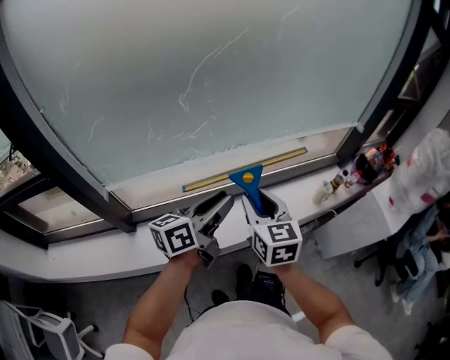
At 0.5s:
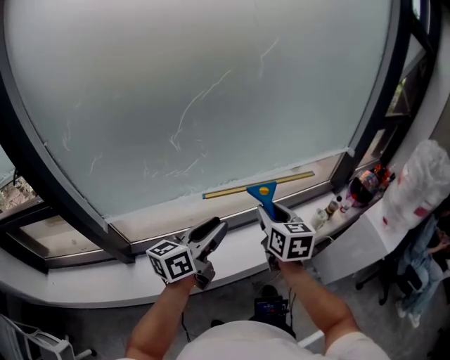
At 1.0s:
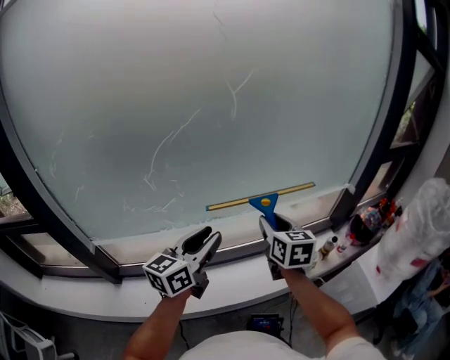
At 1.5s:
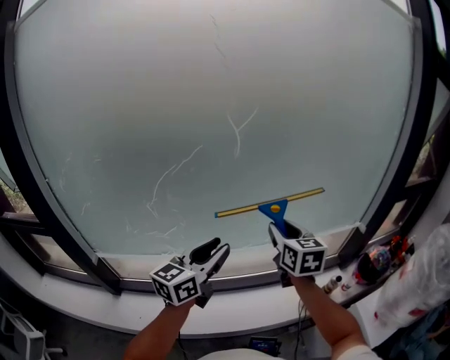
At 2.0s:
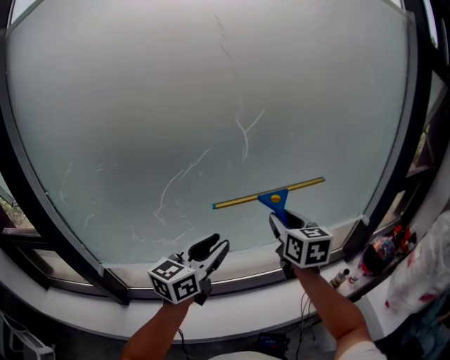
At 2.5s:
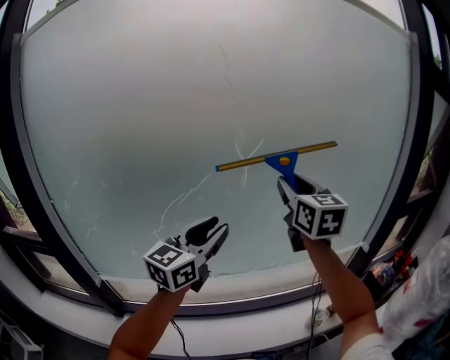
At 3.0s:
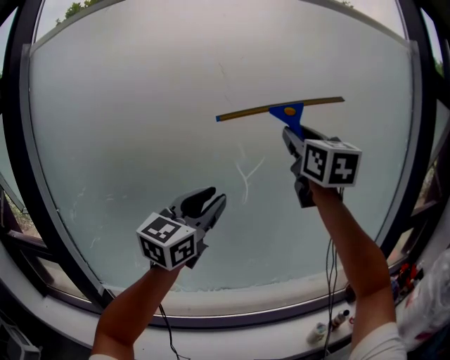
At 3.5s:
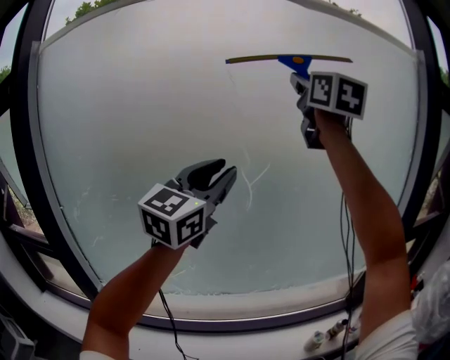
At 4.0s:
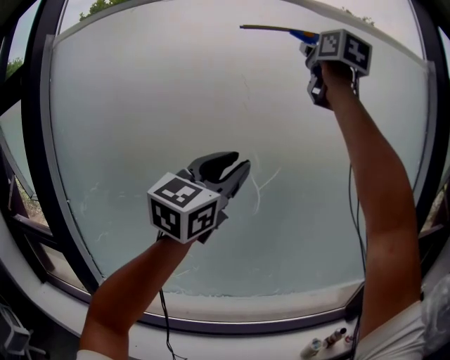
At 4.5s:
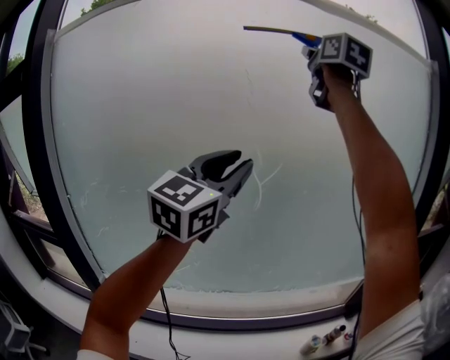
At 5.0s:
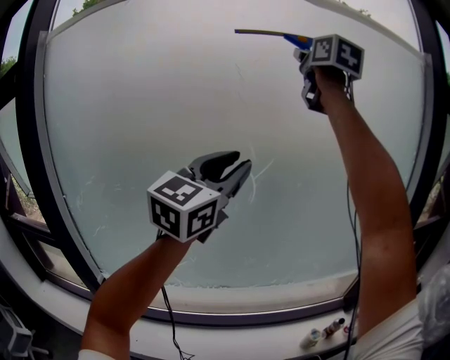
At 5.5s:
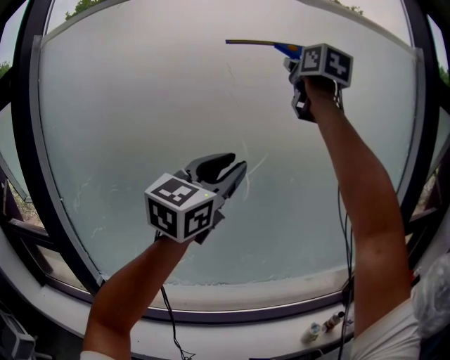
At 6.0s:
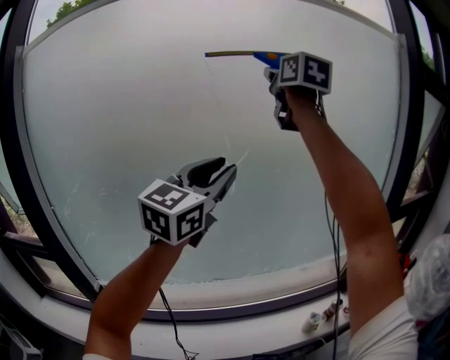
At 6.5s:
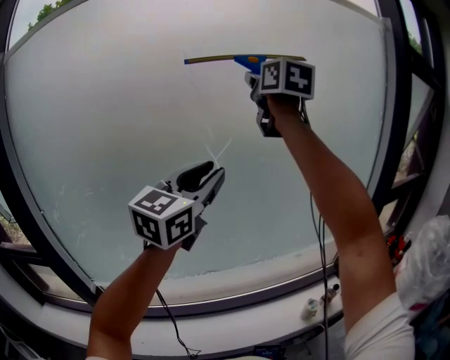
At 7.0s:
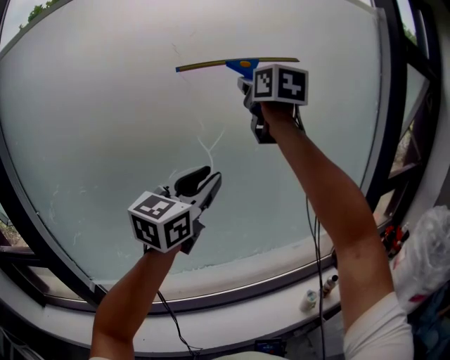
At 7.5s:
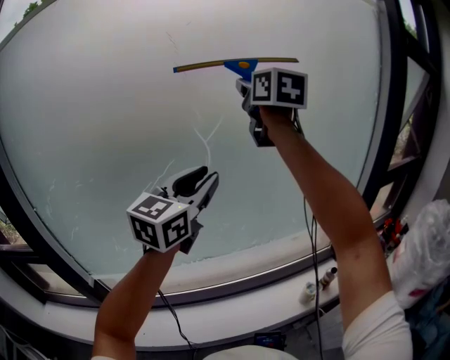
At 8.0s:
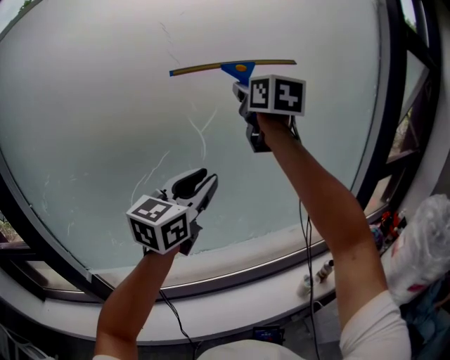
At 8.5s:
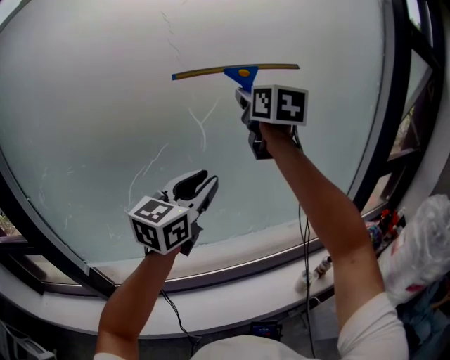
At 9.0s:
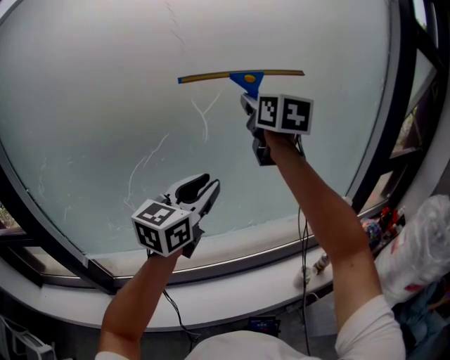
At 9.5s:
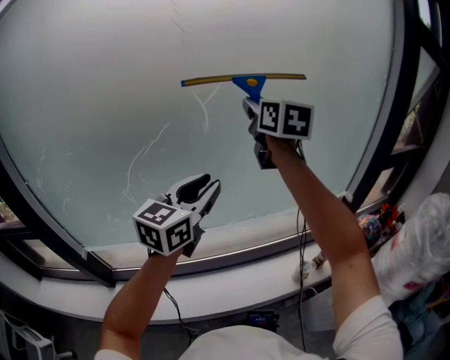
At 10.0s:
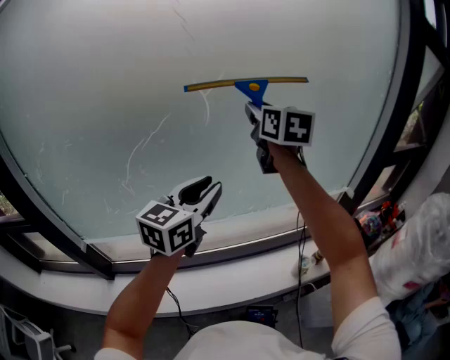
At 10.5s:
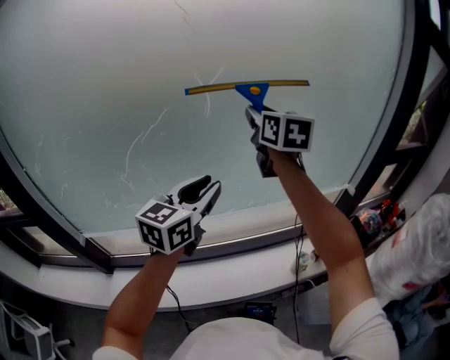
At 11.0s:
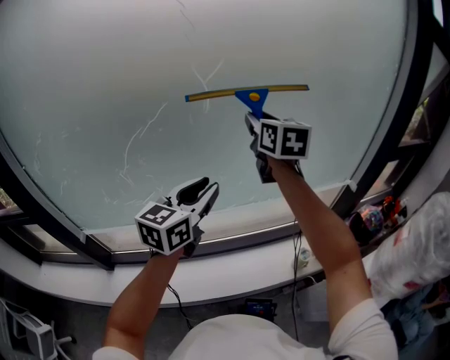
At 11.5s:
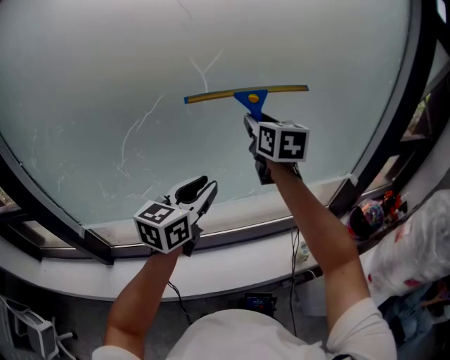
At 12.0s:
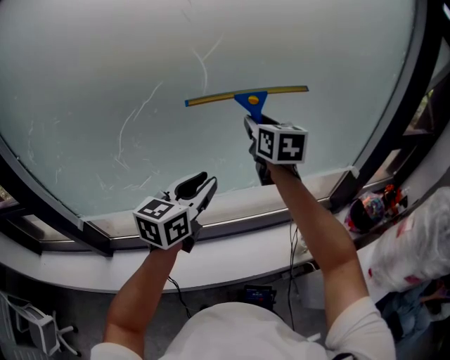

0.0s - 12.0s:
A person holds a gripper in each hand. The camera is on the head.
0.0s - 2.0s: The grippers both shift forward, upward and to the right by some 30 cm. The left gripper turns by roughly 30 degrees.
2.0s - 4.0s: The left gripper is displaced upward by roughly 30 cm, and turns by approximately 40 degrees, while the right gripper heads upward, covering approximately 60 cm, and tips its fingers upward by about 30 degrees.
4.0s - 6.0s: The right gripper travels downward by some 15 cm; the left gripper travels downward by approximately 5 cm.
6.0s - 8.0s: The two grippers go approximately 15 cm downward.
8.0s - 10.0s: The grippers both shift downward by approximately 15 cm.
10.0s - 12.0s: The left gripper is displaced downward by about 10 cm, while the right gripper shifts approximately 15 cm downward.

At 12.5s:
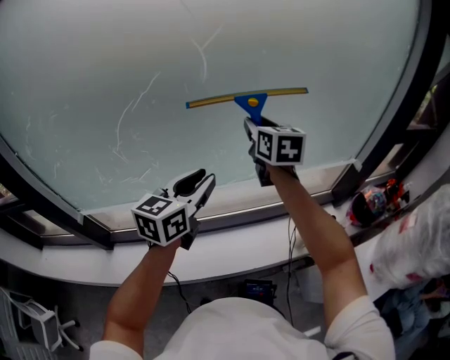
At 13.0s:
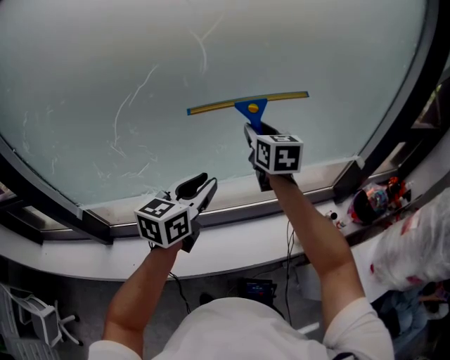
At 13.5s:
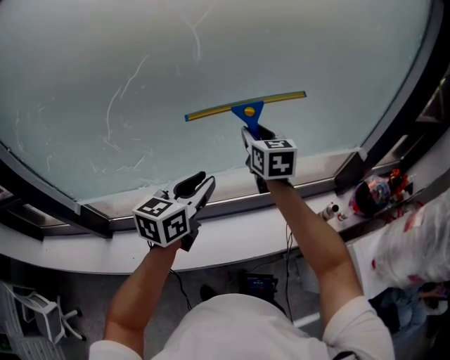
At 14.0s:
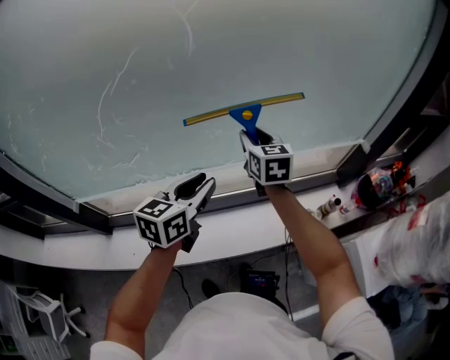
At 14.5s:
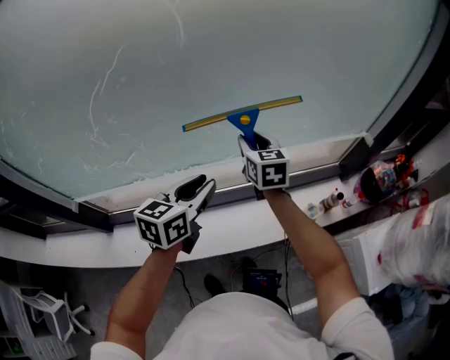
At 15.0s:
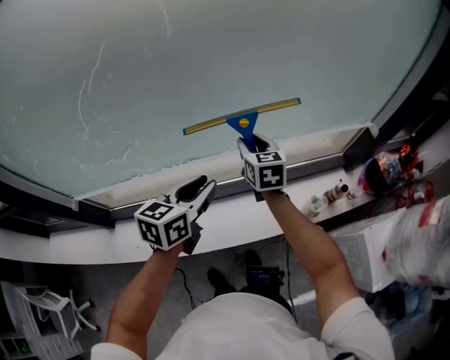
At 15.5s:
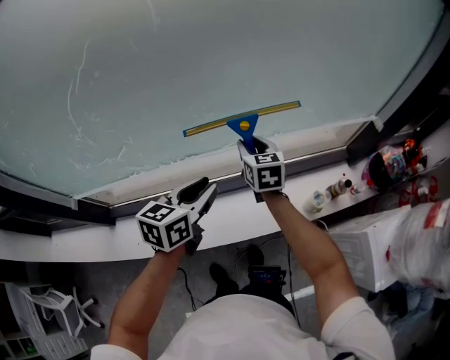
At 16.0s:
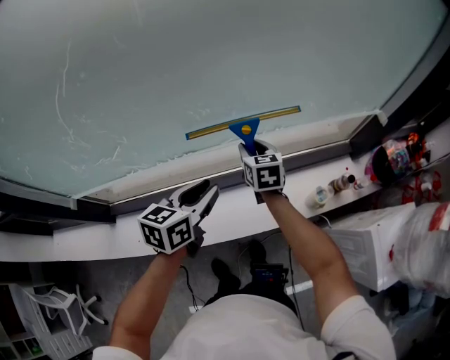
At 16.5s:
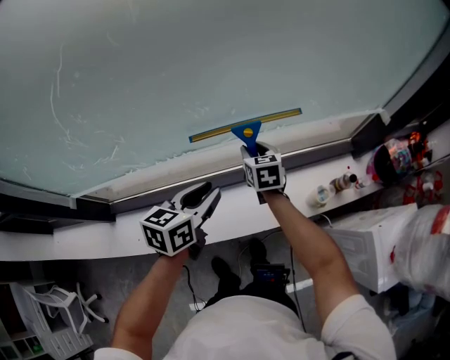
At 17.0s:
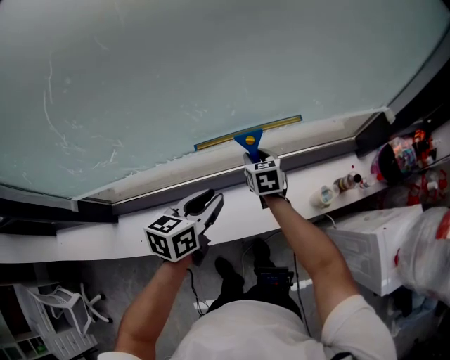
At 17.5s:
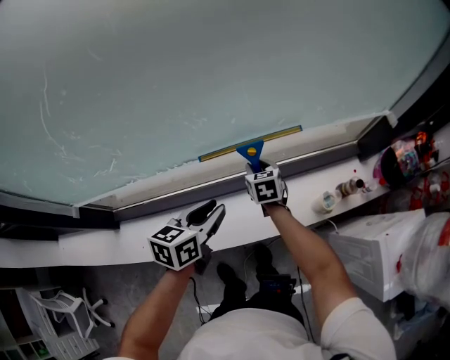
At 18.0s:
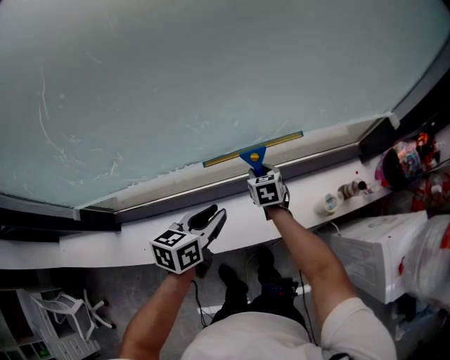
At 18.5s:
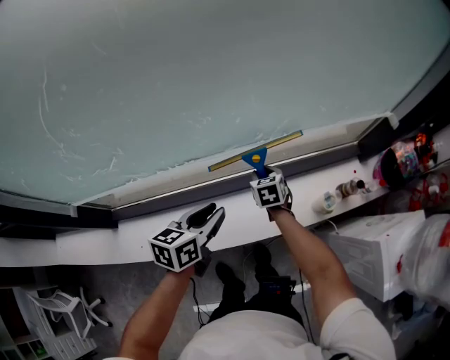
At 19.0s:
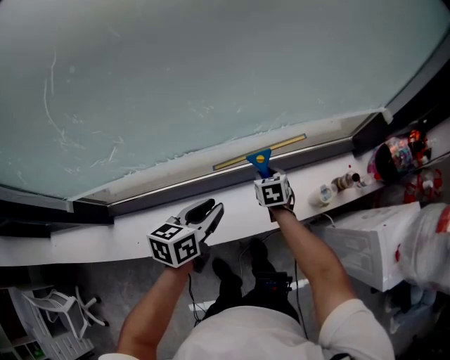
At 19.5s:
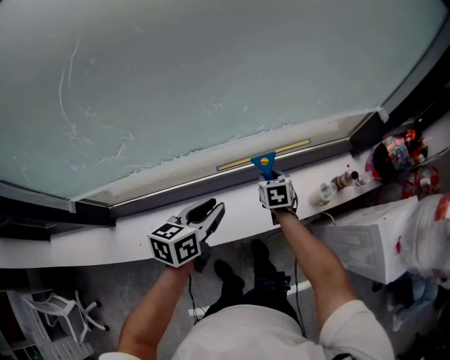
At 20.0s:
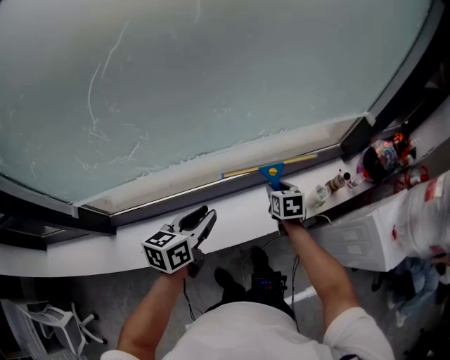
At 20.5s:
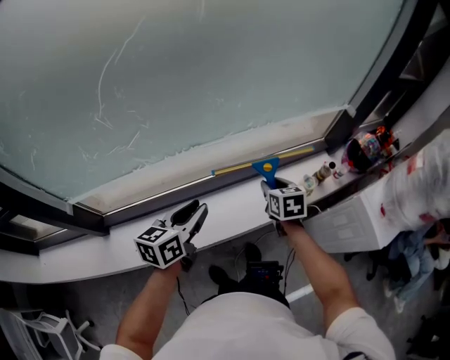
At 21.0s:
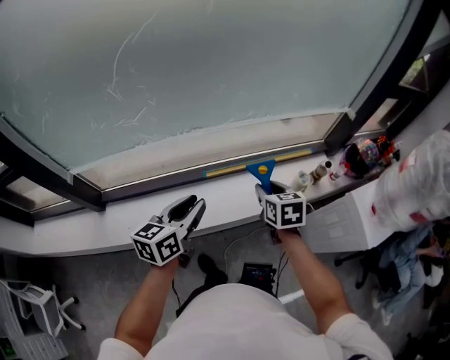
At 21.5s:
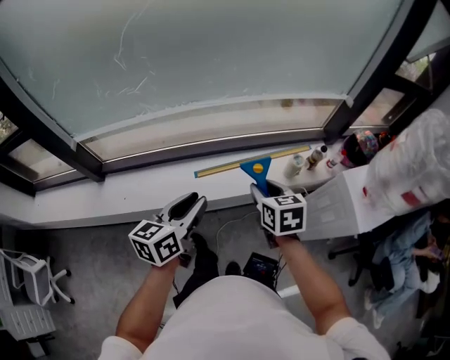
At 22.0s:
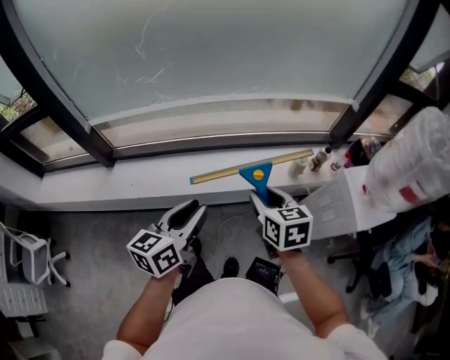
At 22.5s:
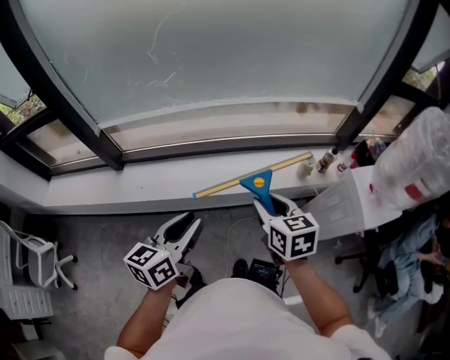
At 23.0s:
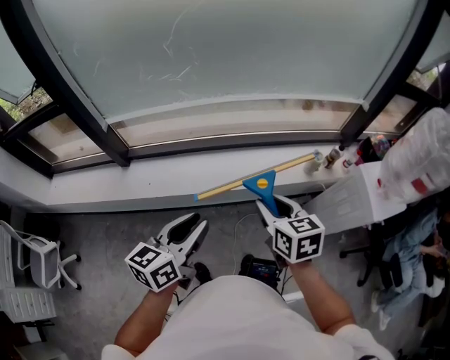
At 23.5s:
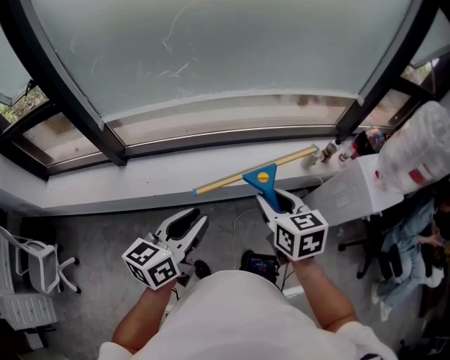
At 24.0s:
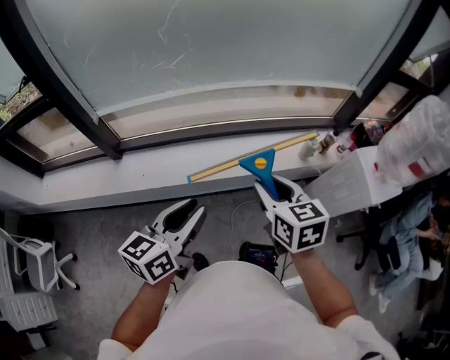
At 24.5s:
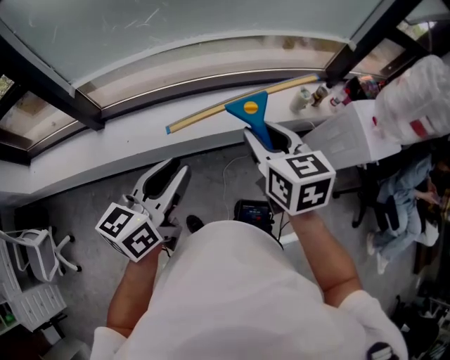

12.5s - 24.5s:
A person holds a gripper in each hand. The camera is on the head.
12.5s - 14.5s: The right gripper heads downward, covering roughly 15 cm. Meanwhile the left gripper goes approximately 10 cm downward.
14.5s - 16.5s: The left gripper travels downward by about 10 cm. Meanwhile the right gripper heads downward, covering roughly 20 cm.
16.5s - 18.5s: The left gripper travels downward by some 5 cm. The right gripper moves downward, roughly 10 cm.
18.5s - 20.5s: The left gripper moves backward, upward and to the left, about 15 cm. The right gripper goes approximately 25 cm backward and upward.
20.5s - 22.5s: The grippers both shift backward by about 30 cm. The right gripper rotates about 20 degrees.
22.5s - 24.5s: The right gripper shifts approximately 10 cm to the left and upward. Meanwhile the left gripper goes some 5 cm to the left.

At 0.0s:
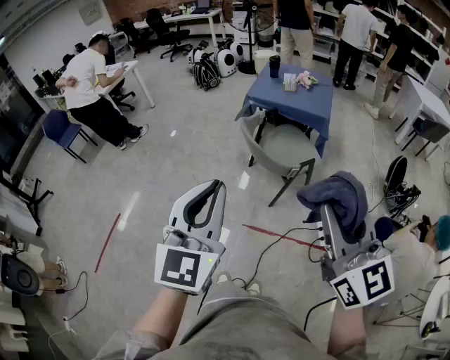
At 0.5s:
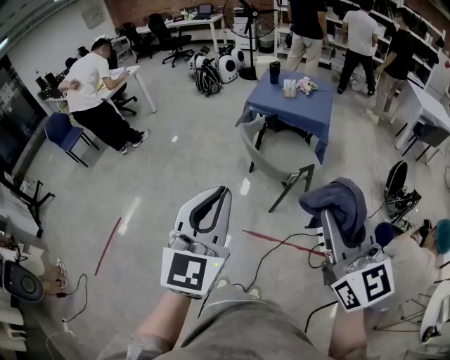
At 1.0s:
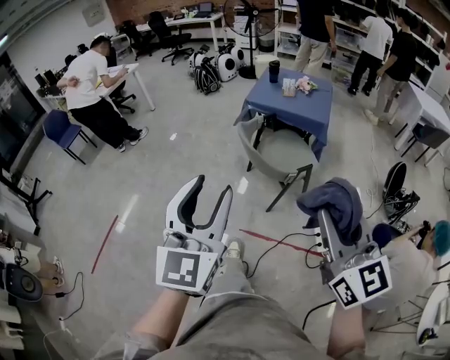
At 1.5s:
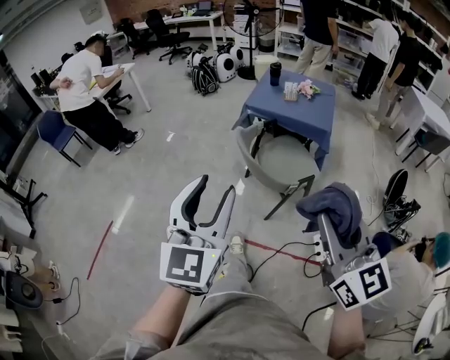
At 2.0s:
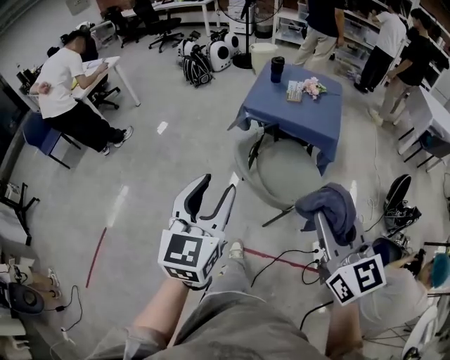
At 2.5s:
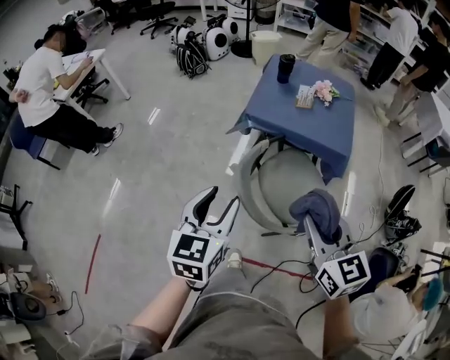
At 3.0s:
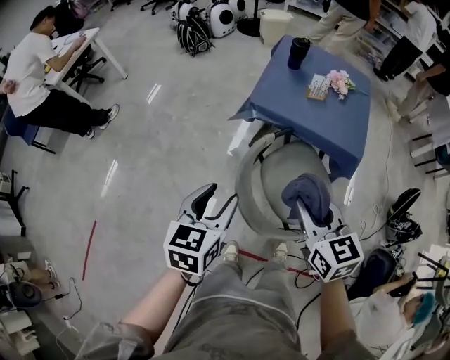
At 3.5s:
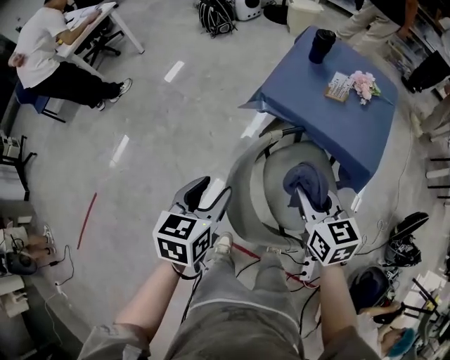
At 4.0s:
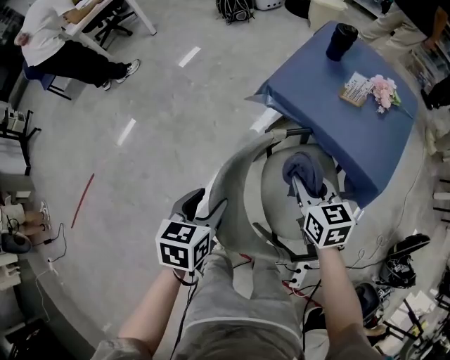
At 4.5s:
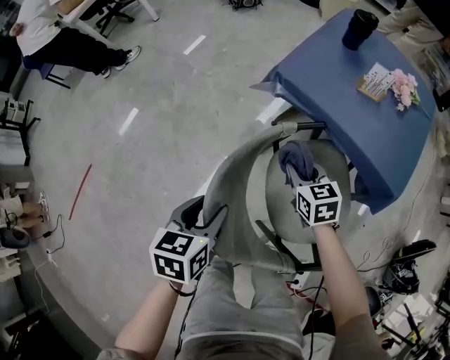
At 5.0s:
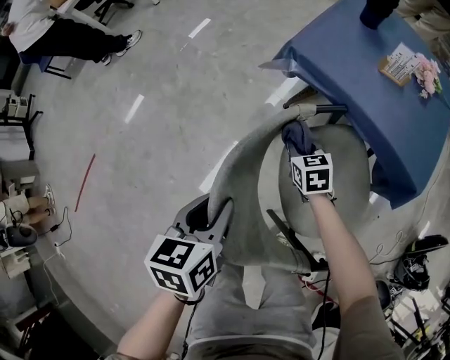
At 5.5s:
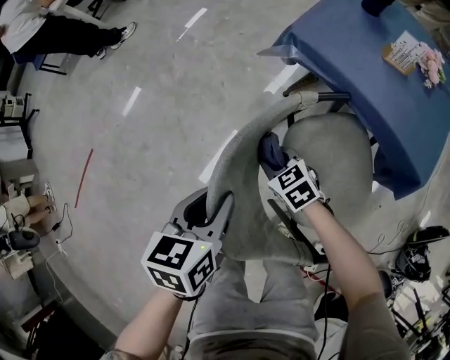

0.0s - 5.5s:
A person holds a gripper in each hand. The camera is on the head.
0.0s - 2.0s: Both grippers travel together forward, roughly 25 cm. The left gripper opens.
2.0s - 3.5s: The grippers both shift forward and downward by roughly 40 cm. The right gripper changes its angle by approximately 30 degrees. The left gripper swivels approximately 30 degrees.
3.5s - 5.5s: The right gripper goes about 35 cm downward, and swivels about 40 degrees. The left gripper heads downward, covering approximately 15 cm, and closes its fingers.
